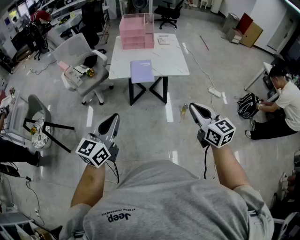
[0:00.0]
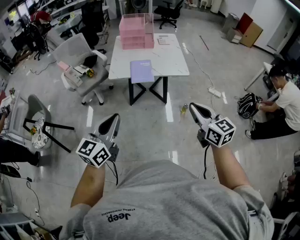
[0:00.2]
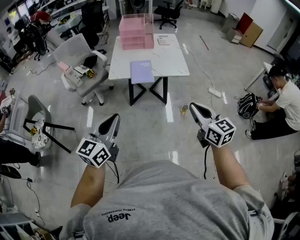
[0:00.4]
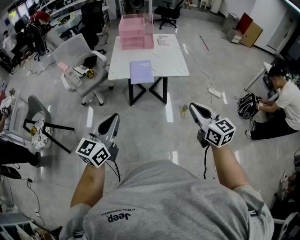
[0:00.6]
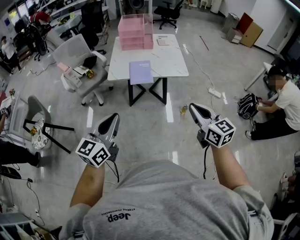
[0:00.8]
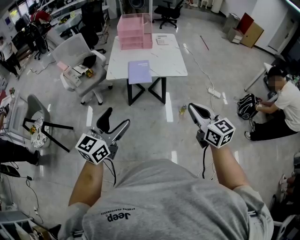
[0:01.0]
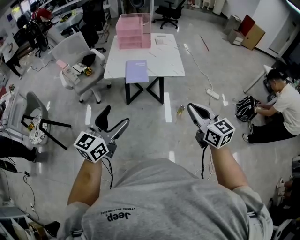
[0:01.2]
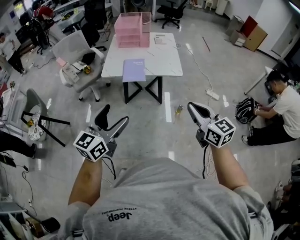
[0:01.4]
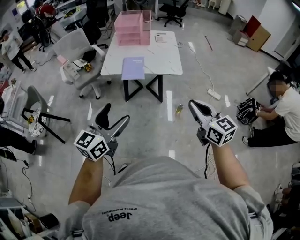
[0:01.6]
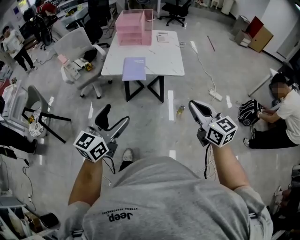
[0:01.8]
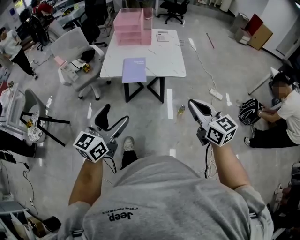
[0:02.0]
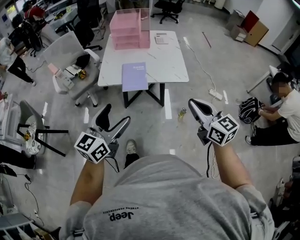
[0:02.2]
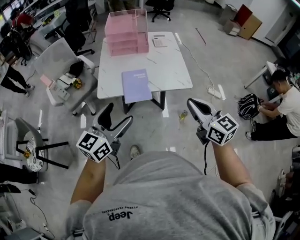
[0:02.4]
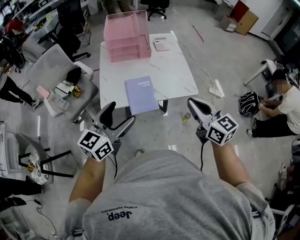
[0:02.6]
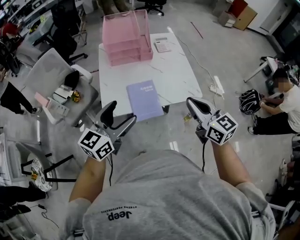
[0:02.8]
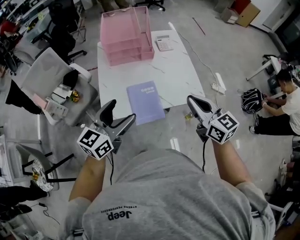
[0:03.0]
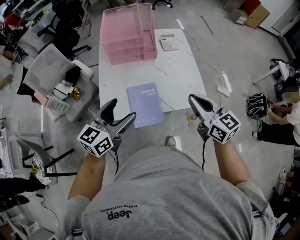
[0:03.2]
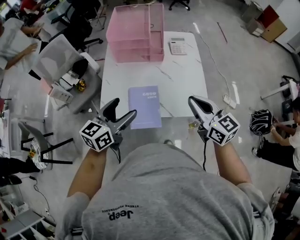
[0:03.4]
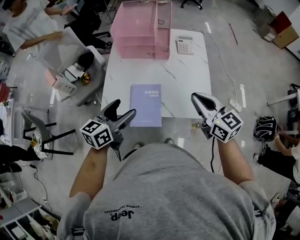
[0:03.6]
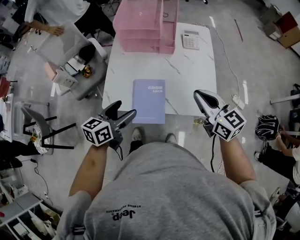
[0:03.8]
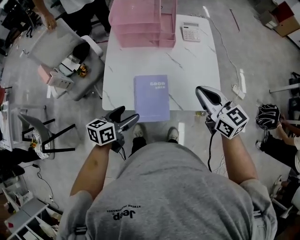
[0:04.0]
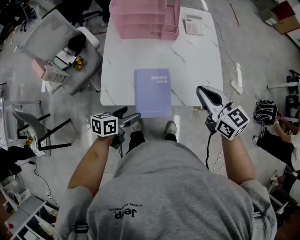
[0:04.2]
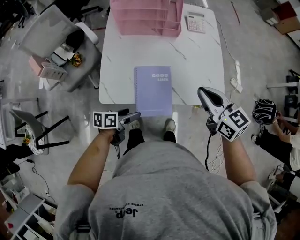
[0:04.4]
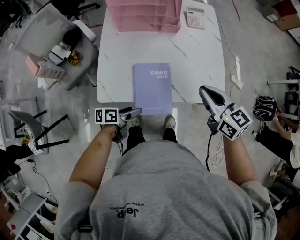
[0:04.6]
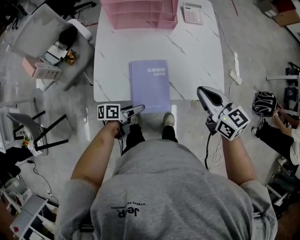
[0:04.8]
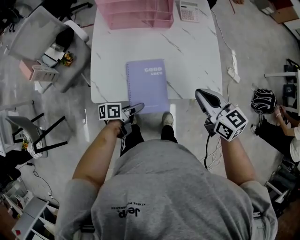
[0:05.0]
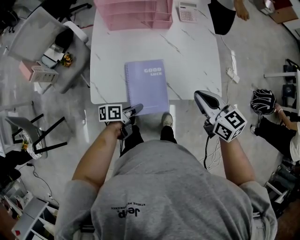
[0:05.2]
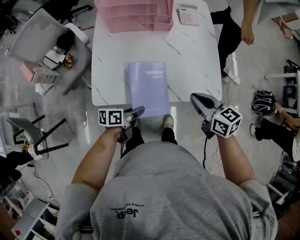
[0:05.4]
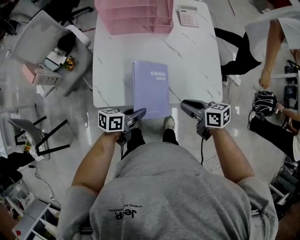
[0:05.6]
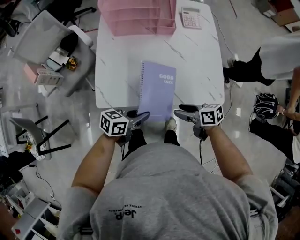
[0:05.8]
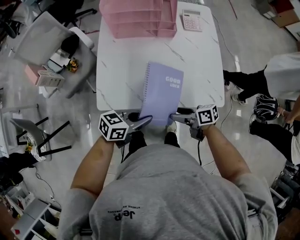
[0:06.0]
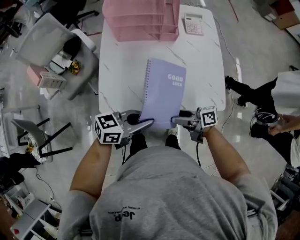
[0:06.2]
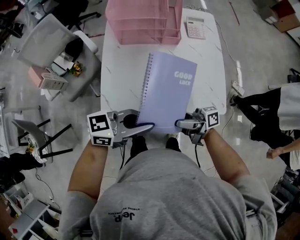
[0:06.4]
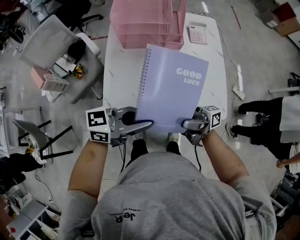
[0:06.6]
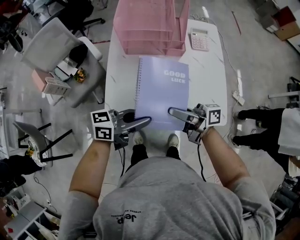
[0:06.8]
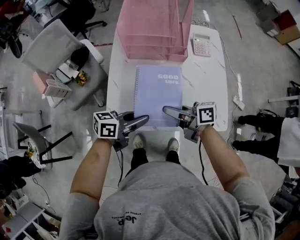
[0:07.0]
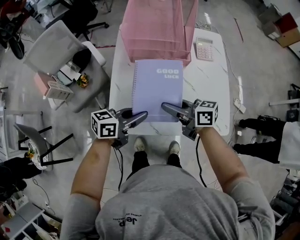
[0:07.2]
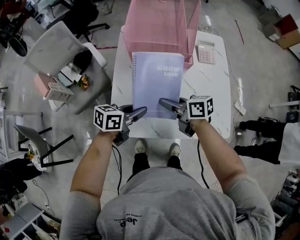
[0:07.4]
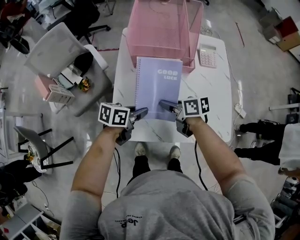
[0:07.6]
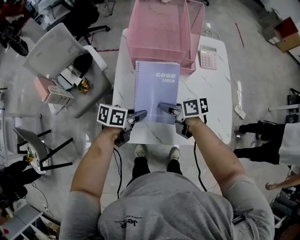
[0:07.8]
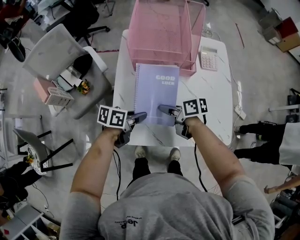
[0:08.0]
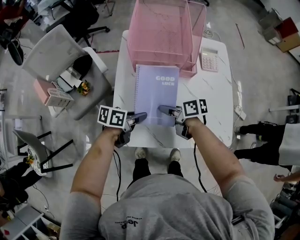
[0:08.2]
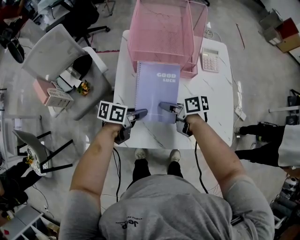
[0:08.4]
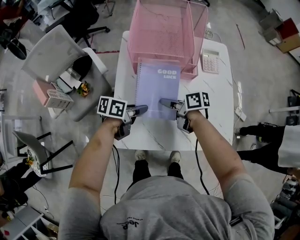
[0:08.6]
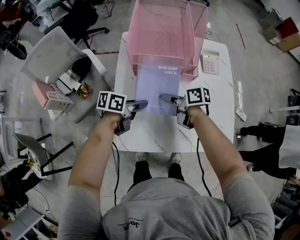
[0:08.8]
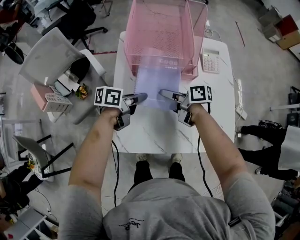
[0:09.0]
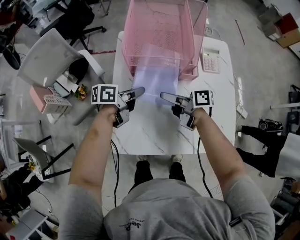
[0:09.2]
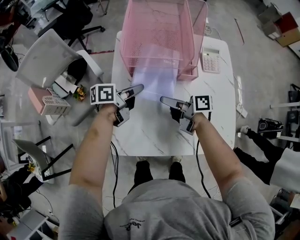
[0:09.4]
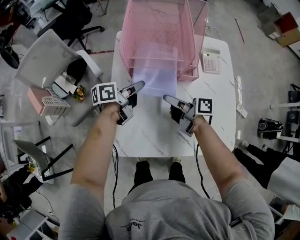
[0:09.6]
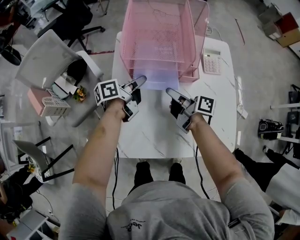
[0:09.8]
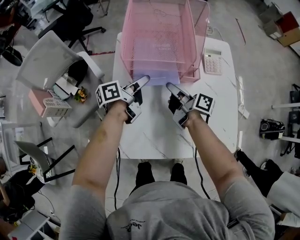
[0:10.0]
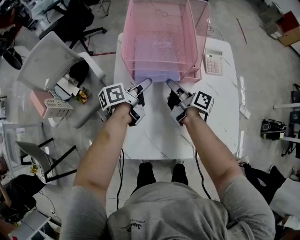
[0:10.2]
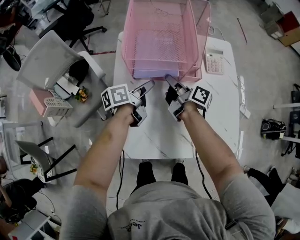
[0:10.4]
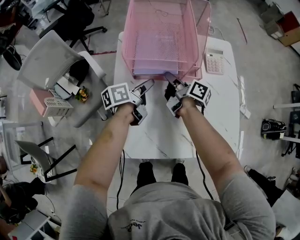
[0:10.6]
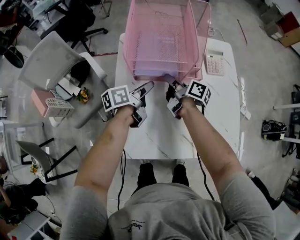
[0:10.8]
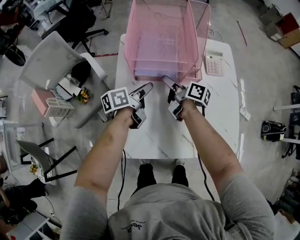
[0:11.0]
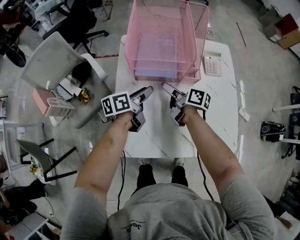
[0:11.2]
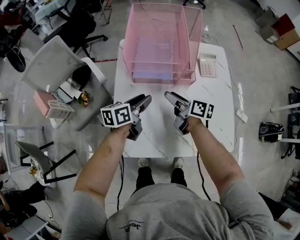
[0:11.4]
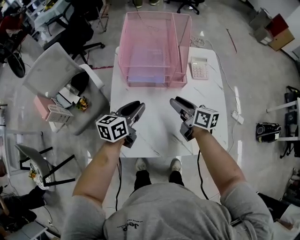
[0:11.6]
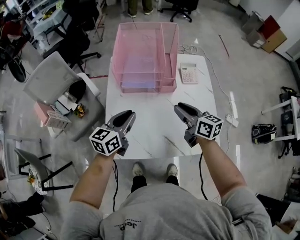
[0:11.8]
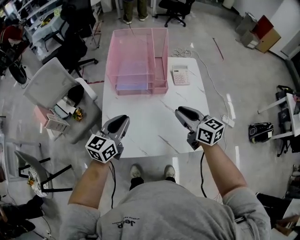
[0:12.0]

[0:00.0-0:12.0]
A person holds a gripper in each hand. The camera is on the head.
0:00.0 to 0:01.6: The two grippers go about 10 cm to the right. The left gripper opens up.
0:01.6 to 0:03.0: The two grippers travel together, forward and to the left, some 50 cm.
0:03.0 to 0:04.4: The left gripper travels downward by roughly 30 cm, and twists roughly 50 degrees counterclockwise, seen from behind. Meanwhile the right gripper shifts about 15 cm forward and downward.
0:04.4 to 0:06.0: The left gripper heads upward, covering some 10 cm, swivels about 40 degrees, and closes; the right gripper shifts roughly 20 cm downward, changes its angle by approximately 50 degrees, and opens its fingers.
0:06.0 to 0:07.6: The right gripper travels upward and back again, roughly 20 cm each way, and closes its fingers. The left gripper reaches approximately 15 cm upward, then returns, and turns by about 20 degrees.
0:07.6 to 0:09.0: The right gripper ends up some 10 cm from where it was. Meanwhile the left gripper shifts by roughly 10 cm.
0:09.0 to 0:10.4: The right gripper moves about 10 cm, and turns by approximately 30 degrees. The left gripper ends up roughly 10 cm from where it was, and swivels roughly 20 degrees.
0:10.4 to 0:12.0: The right gripper moves backward, upward and to the right, approximately 30 cm, rotates around the line of its fingers by roughly 50 degrees, counterclockwise from behind, and opens and closes again. Meanwhile the left gripper goes approximately 25 cm backward and upward, and twists roughly 50 degrees clockwise, seen from behind.

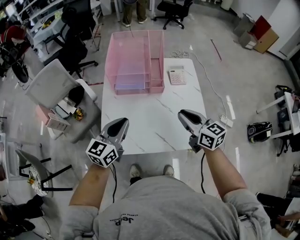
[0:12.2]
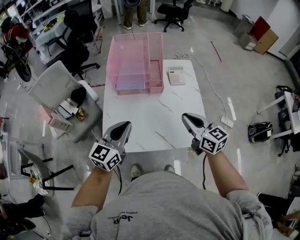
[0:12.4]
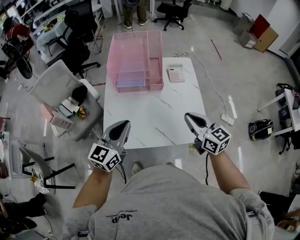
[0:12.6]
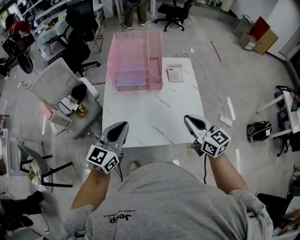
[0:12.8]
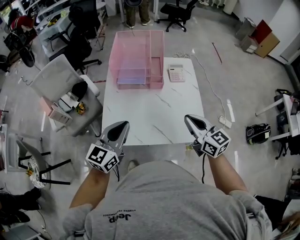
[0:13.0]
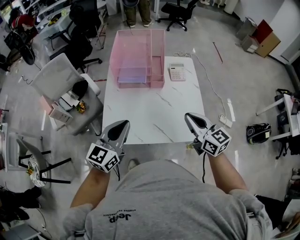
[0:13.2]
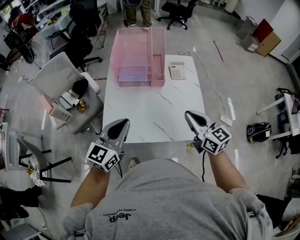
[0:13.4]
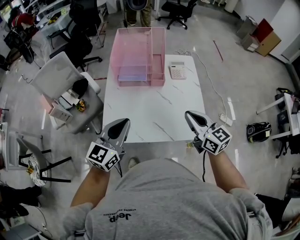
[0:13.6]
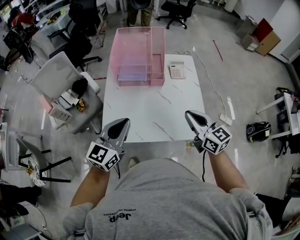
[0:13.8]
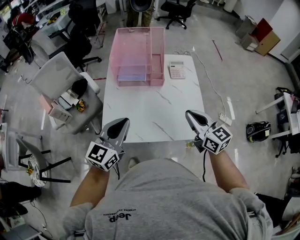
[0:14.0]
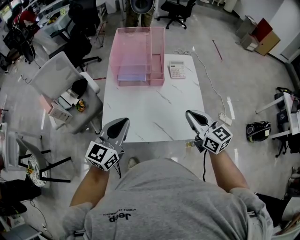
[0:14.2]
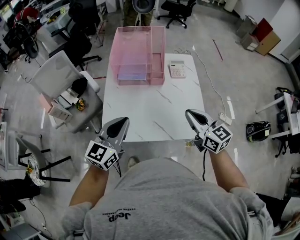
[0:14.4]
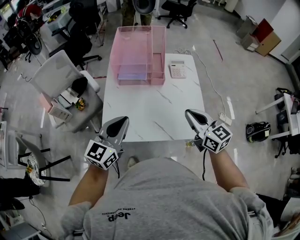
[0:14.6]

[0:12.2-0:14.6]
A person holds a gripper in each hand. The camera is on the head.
0:12.2 to 0:13.4: The left gripper is displaced backward and upward by approximately 10 cm, while the right gripper goes roughly 5 cm backward.
0:13.4 to 0:14.6: Neither gripper changes place.

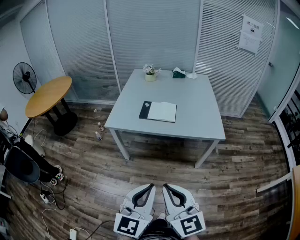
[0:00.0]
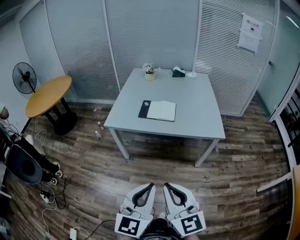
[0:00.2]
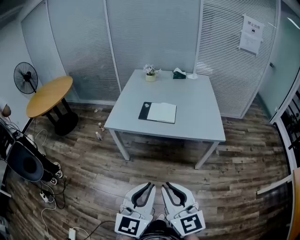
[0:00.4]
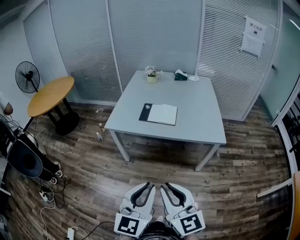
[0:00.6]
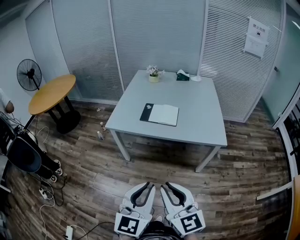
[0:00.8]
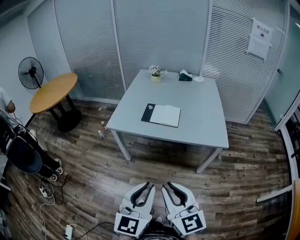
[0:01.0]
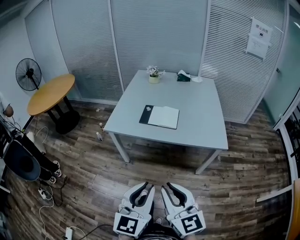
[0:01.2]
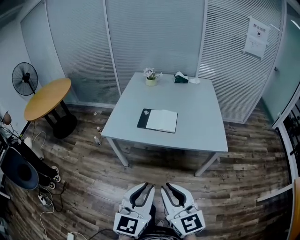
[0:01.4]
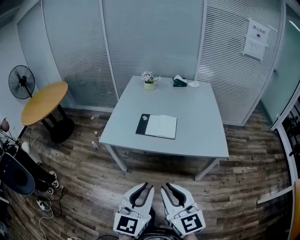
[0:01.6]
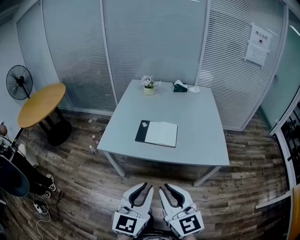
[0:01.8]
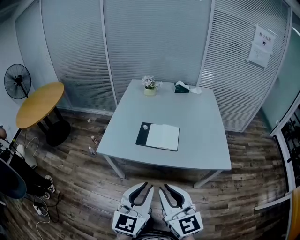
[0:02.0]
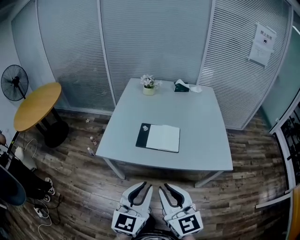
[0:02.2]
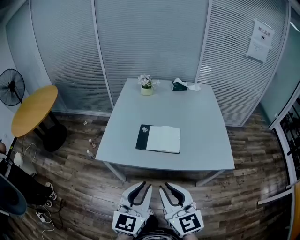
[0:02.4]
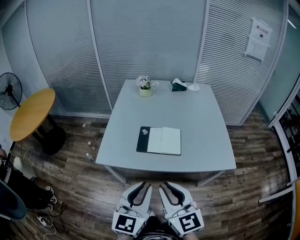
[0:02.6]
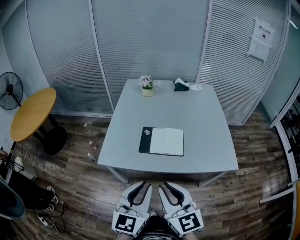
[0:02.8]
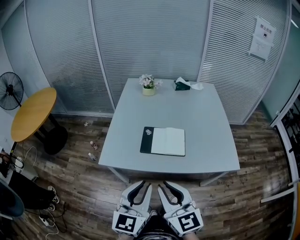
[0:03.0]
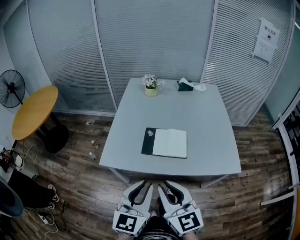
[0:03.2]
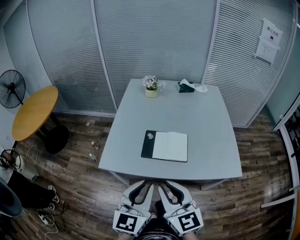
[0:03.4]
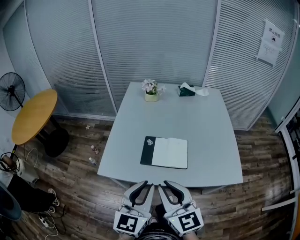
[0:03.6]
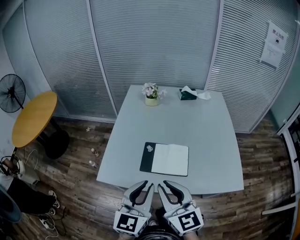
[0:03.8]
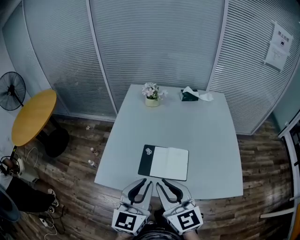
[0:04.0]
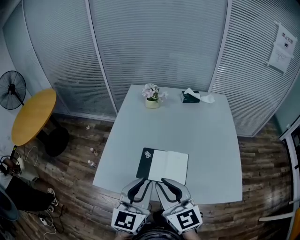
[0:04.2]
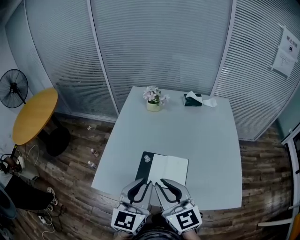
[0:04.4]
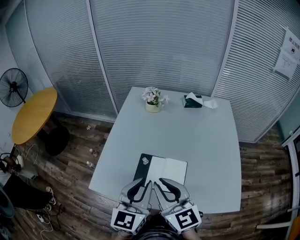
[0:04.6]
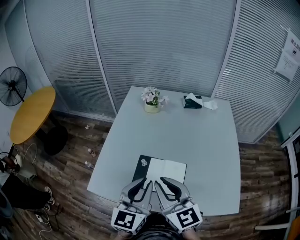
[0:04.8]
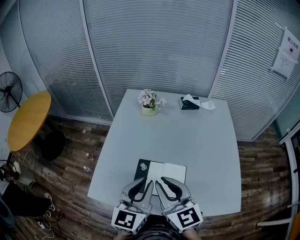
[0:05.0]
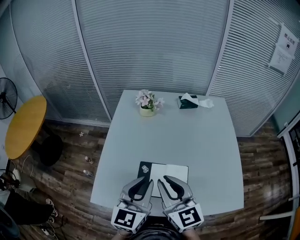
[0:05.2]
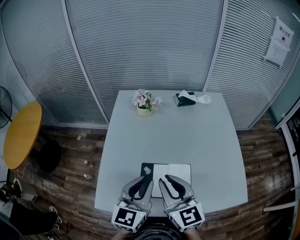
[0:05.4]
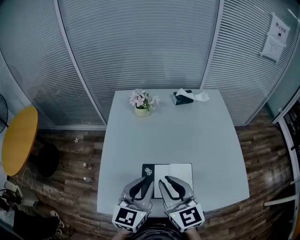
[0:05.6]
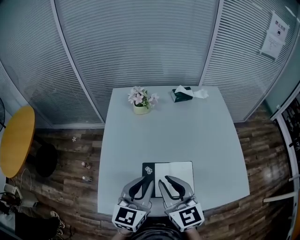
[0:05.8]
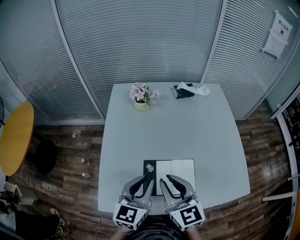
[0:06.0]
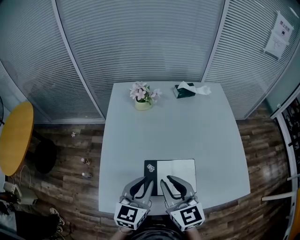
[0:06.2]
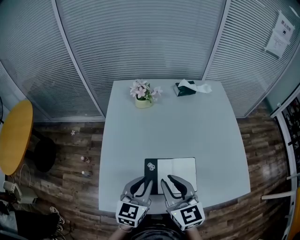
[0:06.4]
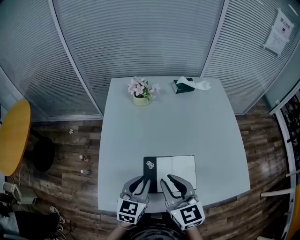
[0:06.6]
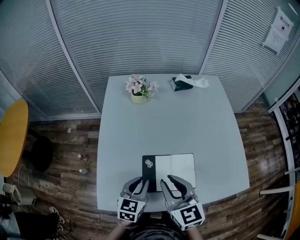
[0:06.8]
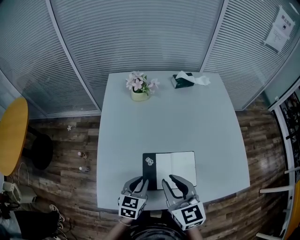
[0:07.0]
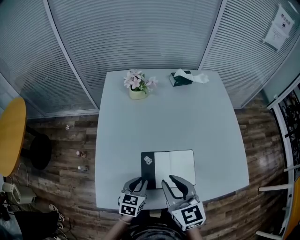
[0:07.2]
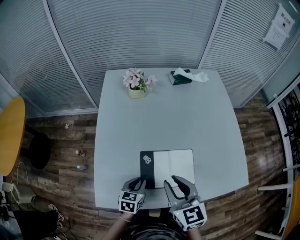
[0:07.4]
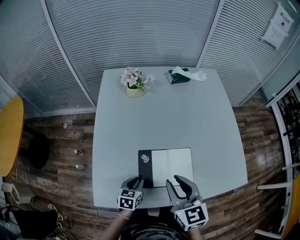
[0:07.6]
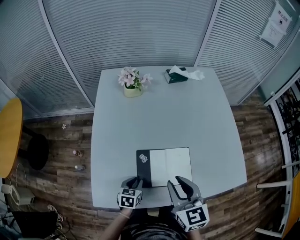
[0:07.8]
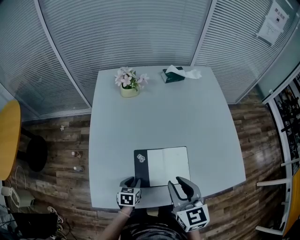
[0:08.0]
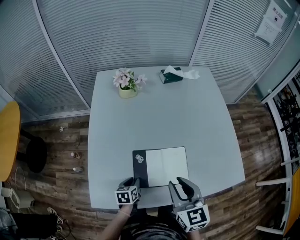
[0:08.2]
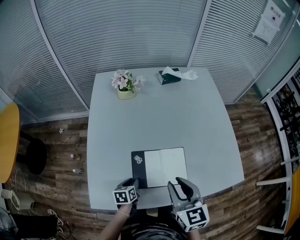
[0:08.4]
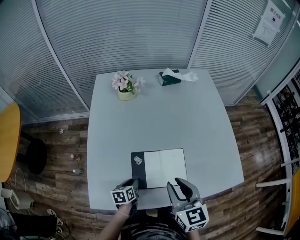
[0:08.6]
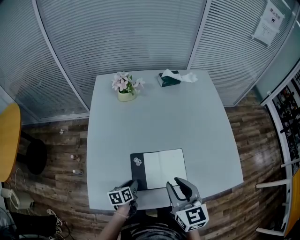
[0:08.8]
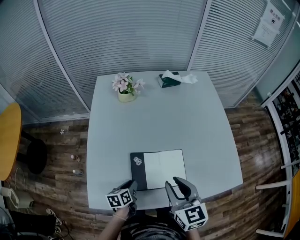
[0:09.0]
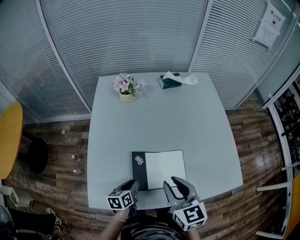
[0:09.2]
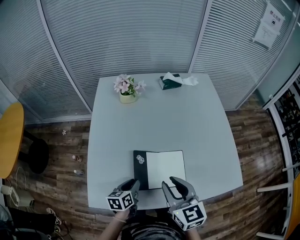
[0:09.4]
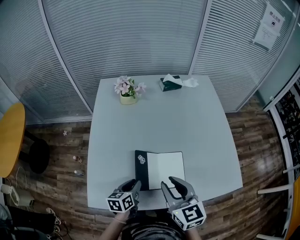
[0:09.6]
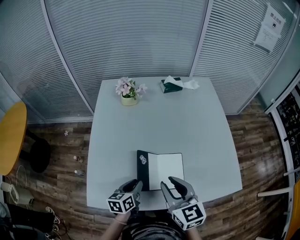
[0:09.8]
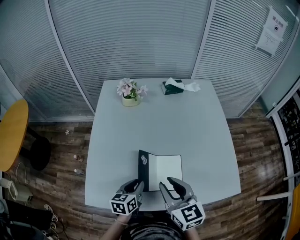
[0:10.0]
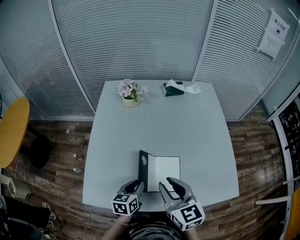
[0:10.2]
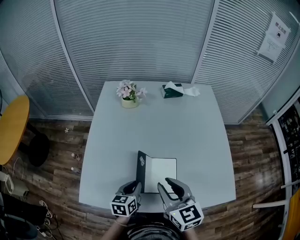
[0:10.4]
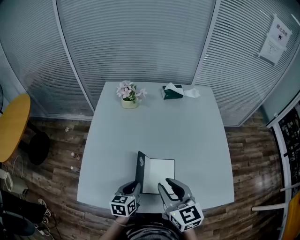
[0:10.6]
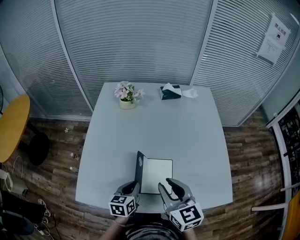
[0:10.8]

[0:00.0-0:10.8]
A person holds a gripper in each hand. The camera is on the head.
0:00.0 to 0:01.6: Both grippers travel together forward, approximately 15 cm.
0:01.6 to 0:03.0: Both grippers travel together forward and to the left, about 20 cm.
0:03.0 to 0:04.6: Both grippers move forward, roughly 25 cm.
0:04.6 to 0:06.2: The right gripper heads forward, to the left and downward, covering some 10 cm; the left gripper moves forward, downward and to the left, about 15 cm.
0:06.2 to 0:07.8: The left gripper shifts about 25 cm downward, and points its fingers some 30 degrees further downward; the right gripper goes some 5 cm to the right.
0:07.8 to 0:09.2: The left gripper changes its angle by approximately 20 degrees.
0:09.2 to 0:10.8: The right gripper travels to the right by approximately 5 cm. The left gripper moves to the right and upward, about 10 cm.
